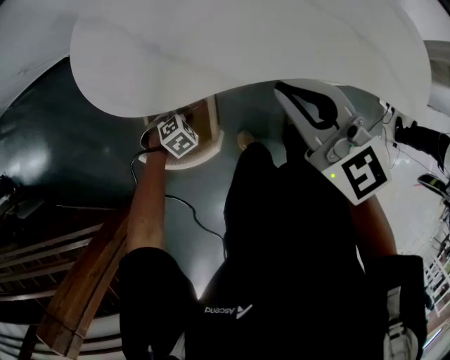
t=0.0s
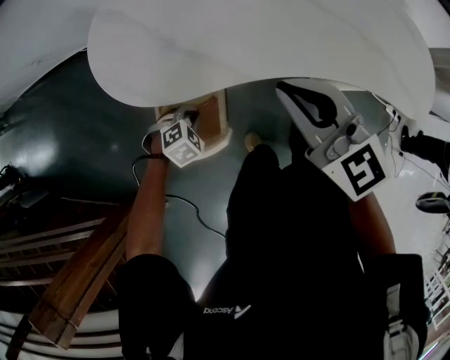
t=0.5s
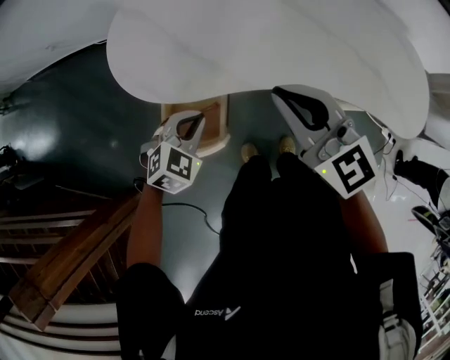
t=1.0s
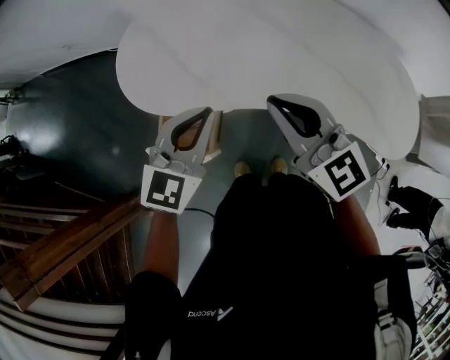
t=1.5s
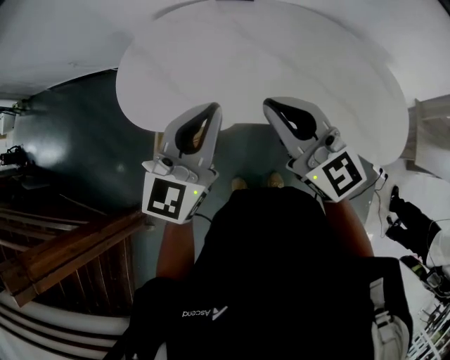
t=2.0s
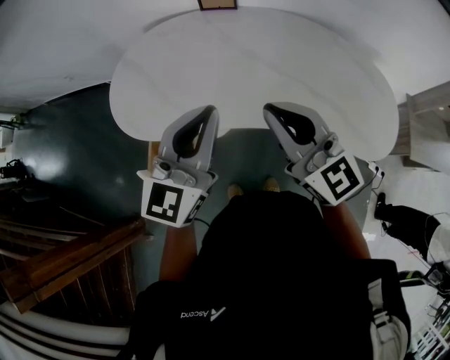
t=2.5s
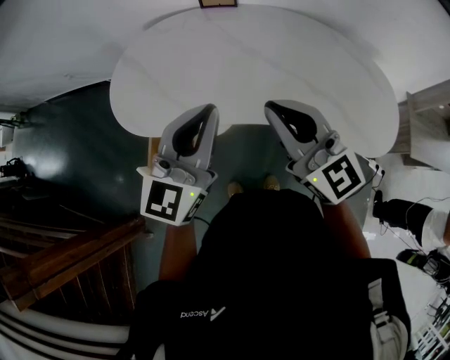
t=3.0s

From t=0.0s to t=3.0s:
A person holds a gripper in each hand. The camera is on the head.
From t=0.0s to t=1.5s: The left gripper moves upward, approximately 40 cm, and tilts its fingers approximately 60 degrees upward. Meanwhile the right gripper heads upward, covering approximately 5 cm.
From t=1.5s to t=3.0s: The right gripper shifts about 10 cm to the right. Meanwhile the left gripper goes approximately 15 cm to the right and upward.

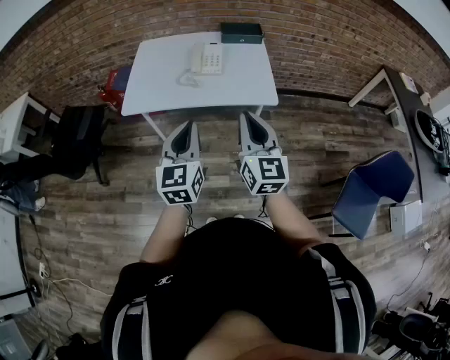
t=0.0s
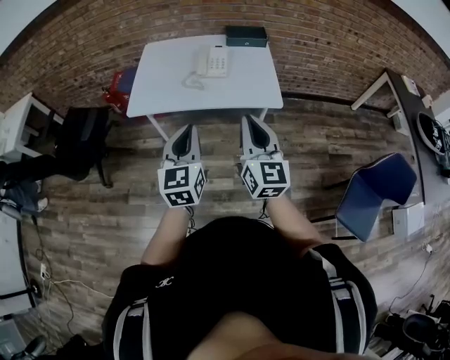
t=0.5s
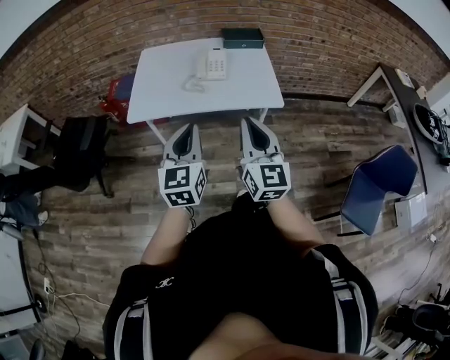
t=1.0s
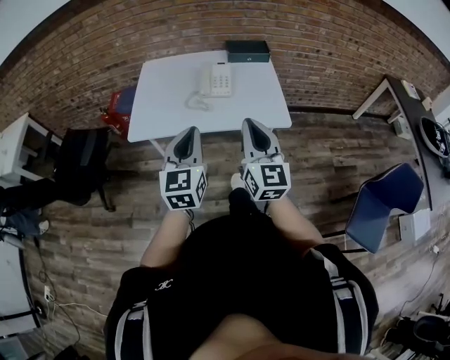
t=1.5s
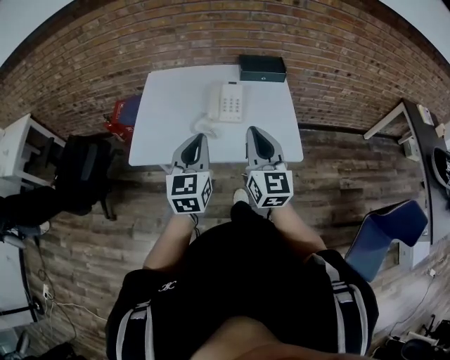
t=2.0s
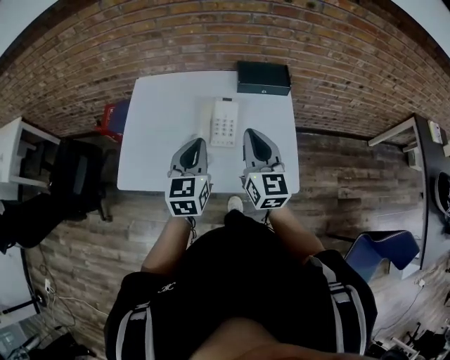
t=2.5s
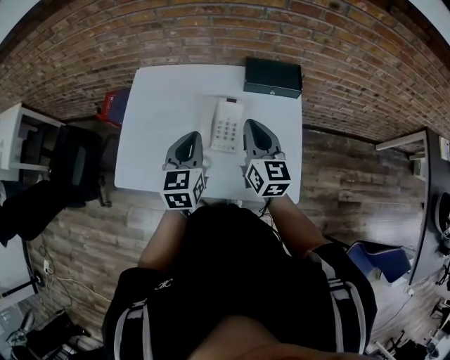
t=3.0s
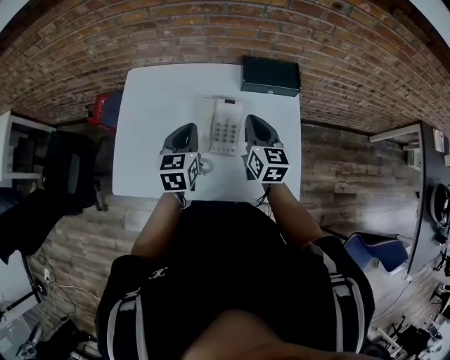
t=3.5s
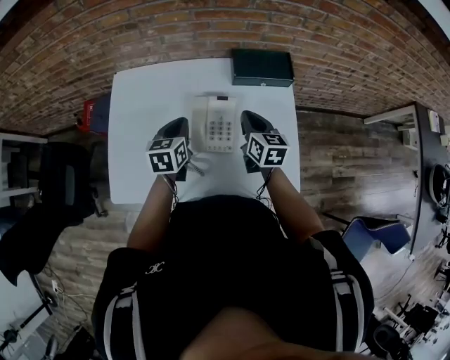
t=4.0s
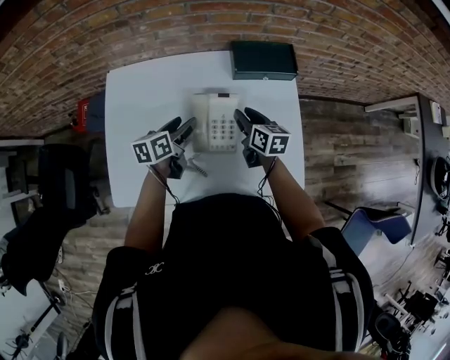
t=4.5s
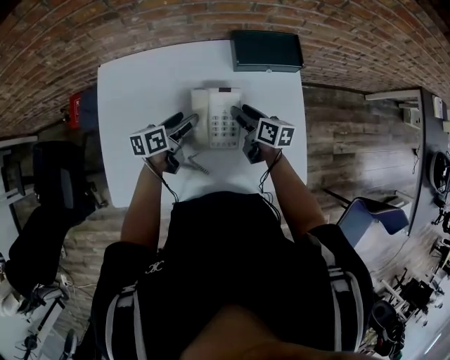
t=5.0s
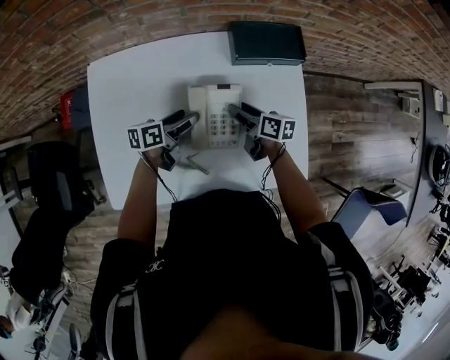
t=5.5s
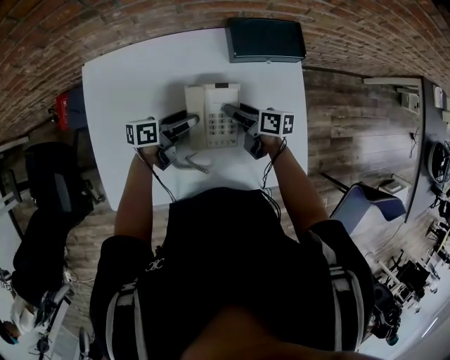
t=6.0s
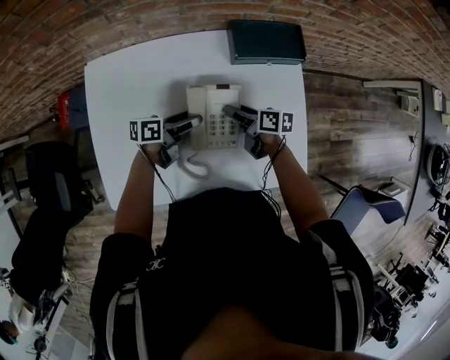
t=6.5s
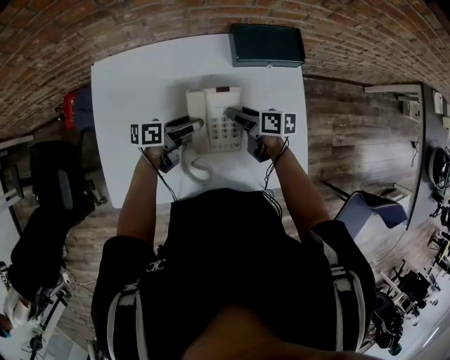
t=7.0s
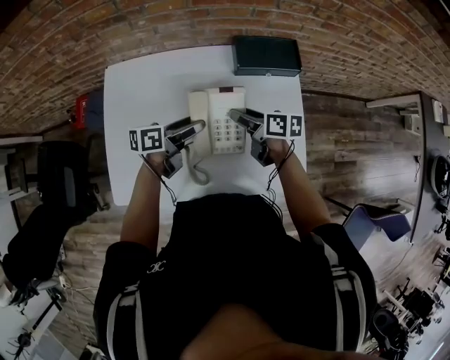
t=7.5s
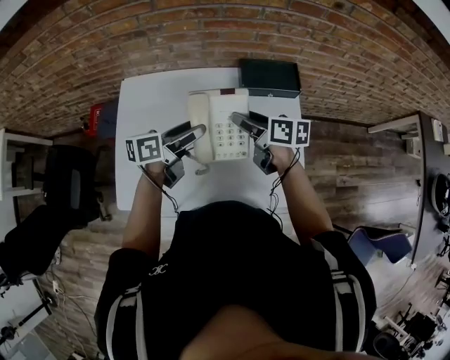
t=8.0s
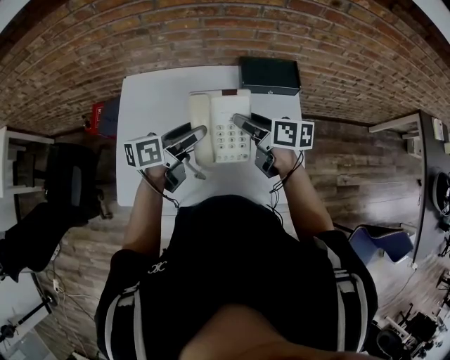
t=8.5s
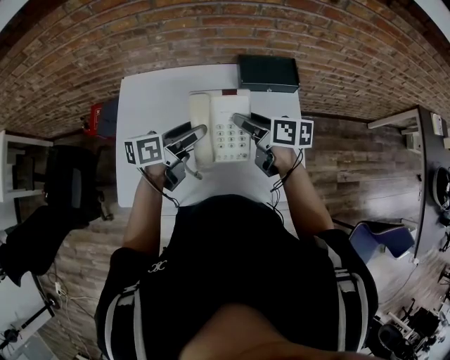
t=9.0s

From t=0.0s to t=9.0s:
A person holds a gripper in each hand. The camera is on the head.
From t=0.0s to t=2.0s: The grippers both shift forward by some 25 cm.
From t=2.0s to t=4.5s: Both grippers move forward and downward, roughly 40 cm. The left gripper turns by some 50 degrees, and opens its fingers; the right gripper tilts its fingers about 30 degrees downward, and opens up.
From t=4.5s to t=7.0s: The left gripper travels downward by approximately 5 cm, and swivels about 30 degrees, while the right gripper changes place by some 5 cm, swivels some 30 degrees, and opens its fingers.
From t=7.0s to t=9.0s: Both grippers move upward, about 15 cm. The left gripper rotates roughly 20 degrees.

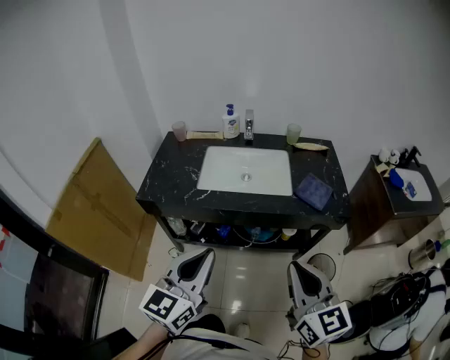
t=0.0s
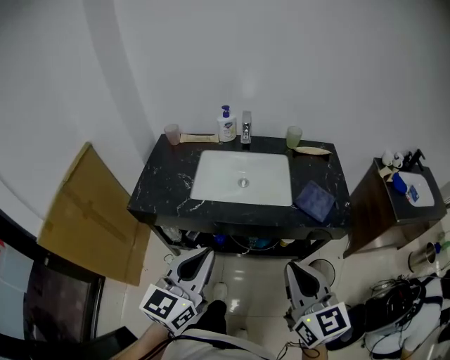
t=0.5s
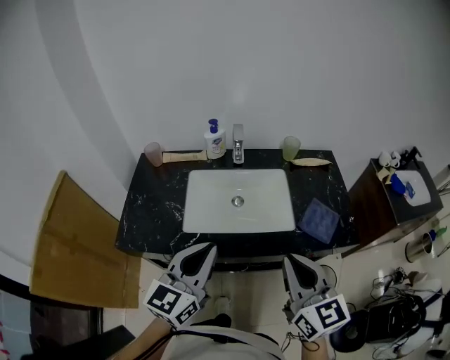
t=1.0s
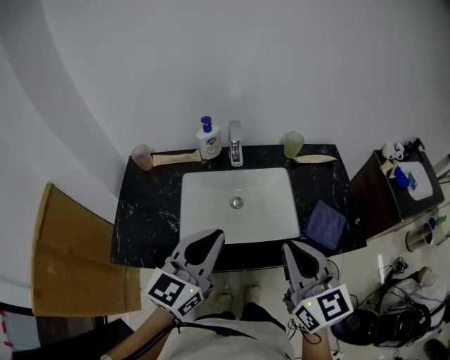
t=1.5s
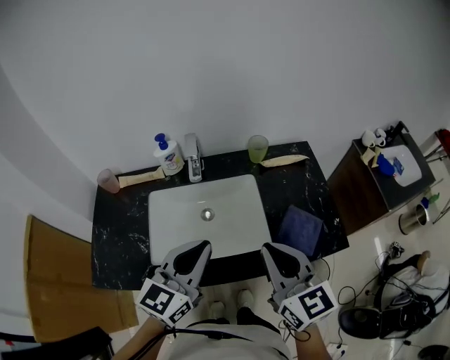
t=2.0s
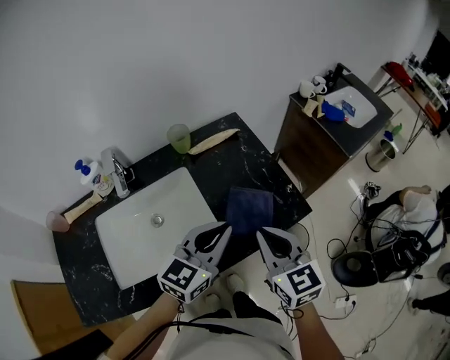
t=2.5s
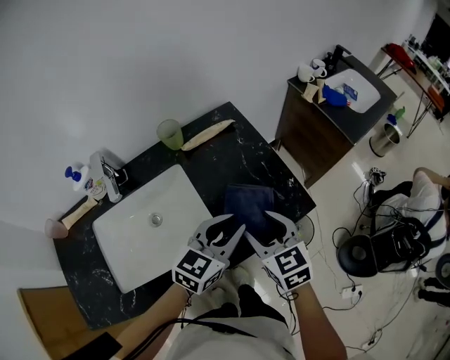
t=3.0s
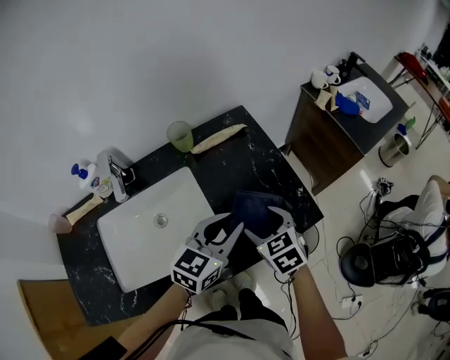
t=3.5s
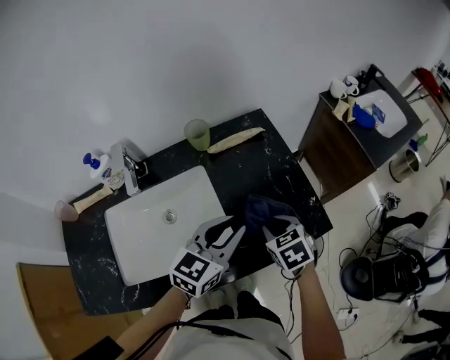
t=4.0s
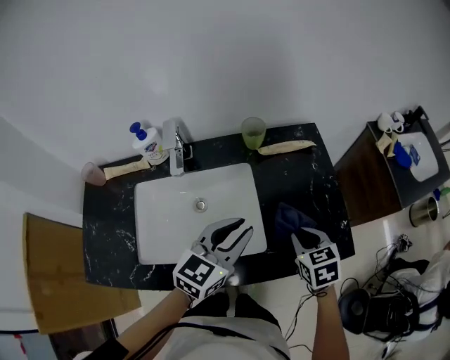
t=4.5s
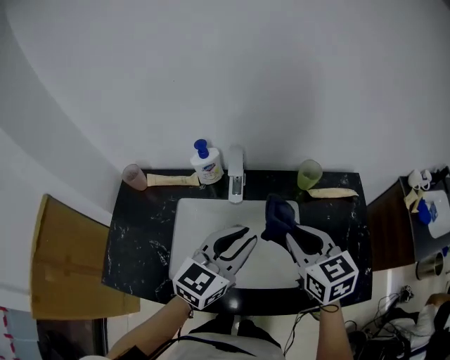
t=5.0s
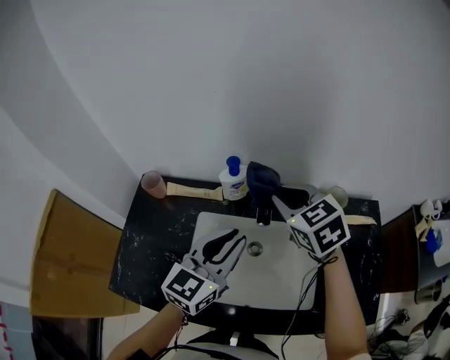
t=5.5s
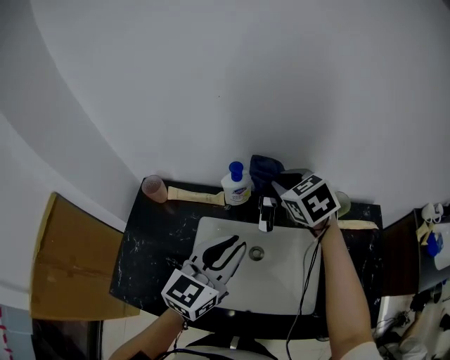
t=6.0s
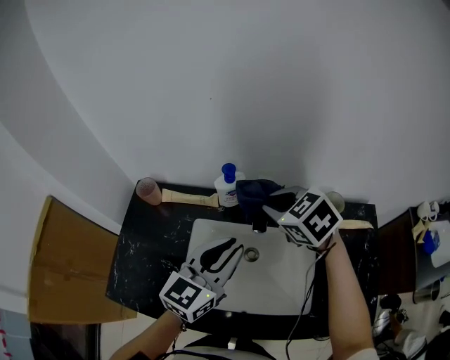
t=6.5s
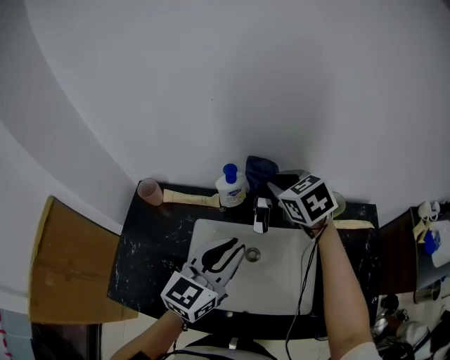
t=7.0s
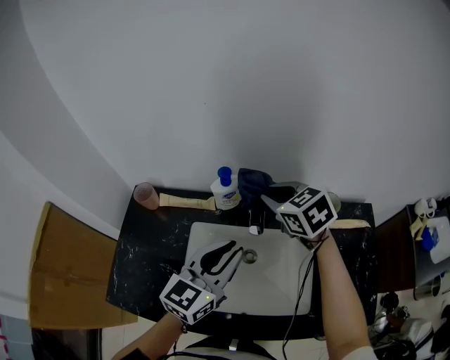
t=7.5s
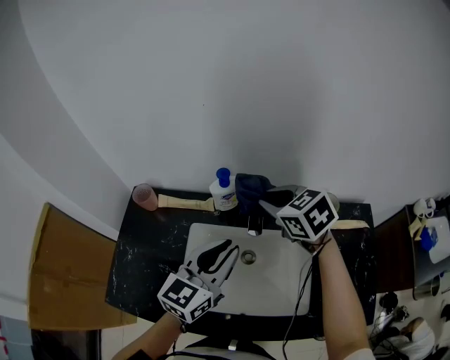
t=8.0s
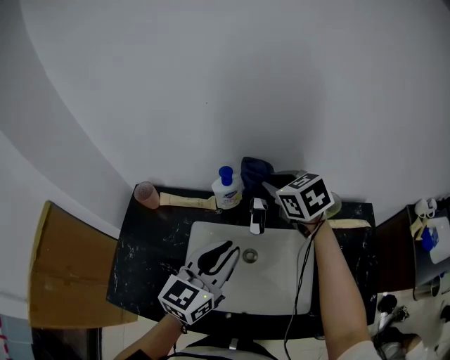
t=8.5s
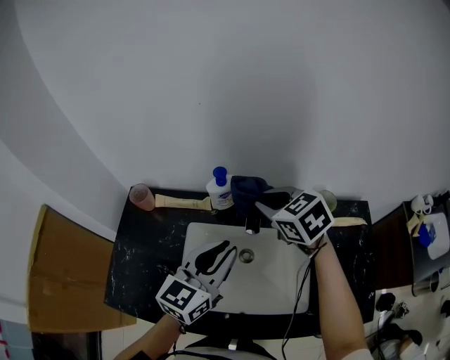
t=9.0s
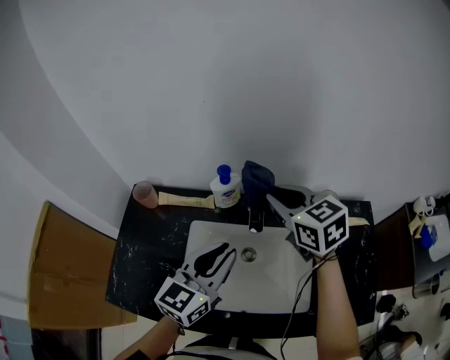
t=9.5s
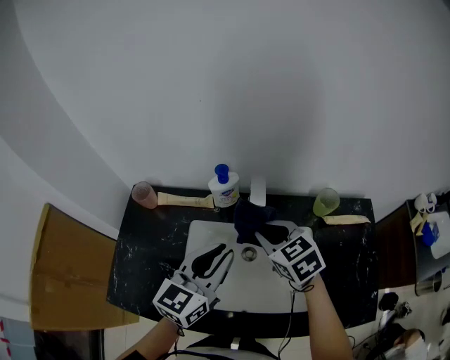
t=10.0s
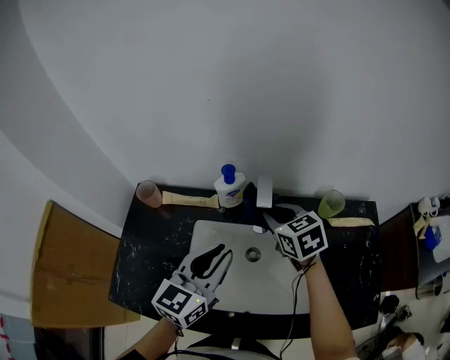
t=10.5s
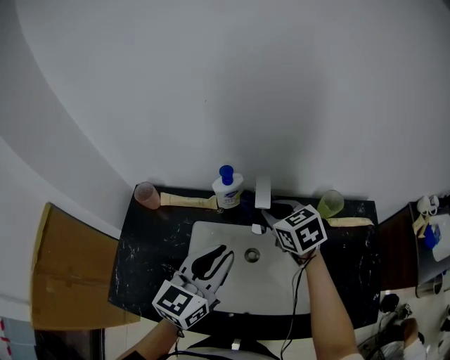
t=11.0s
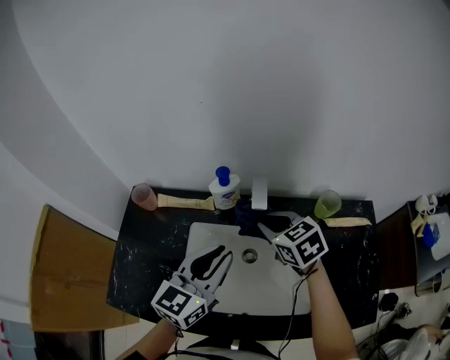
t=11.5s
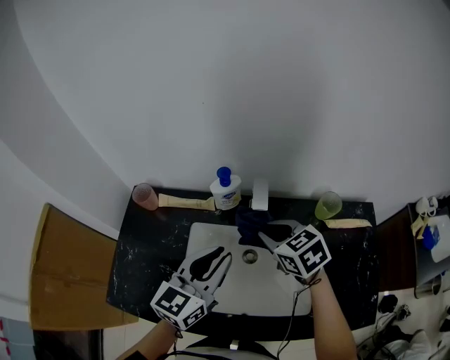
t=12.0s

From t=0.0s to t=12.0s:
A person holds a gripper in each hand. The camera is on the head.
From t=0.0s to t=2.0s: Both grippers move forward, approximately 35 cm.
From t=2.0s to t=4.0s: The left gripper moves about 25 cm, swivels about 30 degrees, and opens its fingers, while the right gripper moves downward, some 25 cm, angles its fingers downward, by roughly 50 degrees, and opens up.
From t=4.0s to t=6.0s: The right gripper changes place by some 50 cm, and swivels approximately 40 degrees; the left gripper ends up some 35 cm from where it was, and changes its angle by approximately 40 degrees.
From t=6.0s to t=8.0s: The right gripper goes forward and backward, approximately 5 cm each way, reversing 2 times.
From t=8.0s to t=10.0s: The right gripper shifts approximately 10 cm backward and downward.

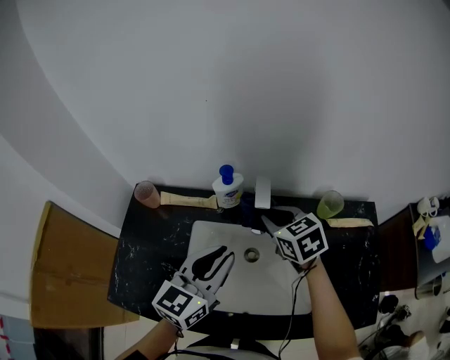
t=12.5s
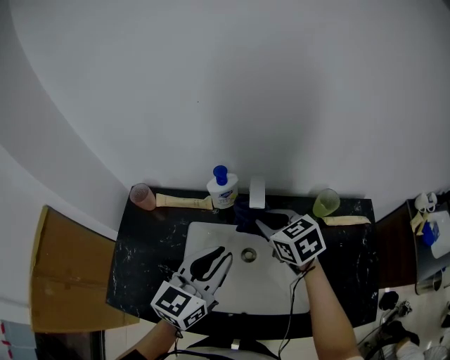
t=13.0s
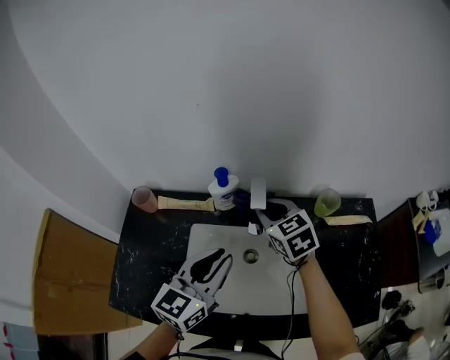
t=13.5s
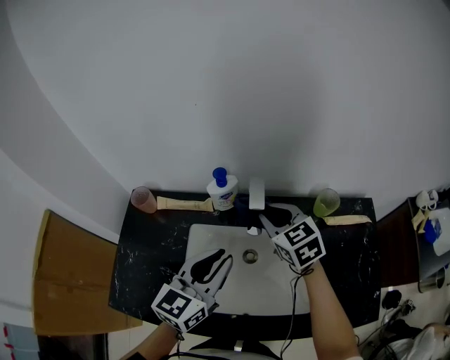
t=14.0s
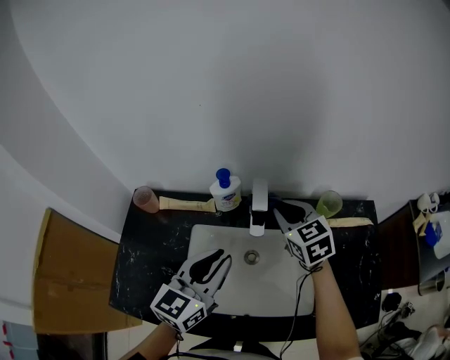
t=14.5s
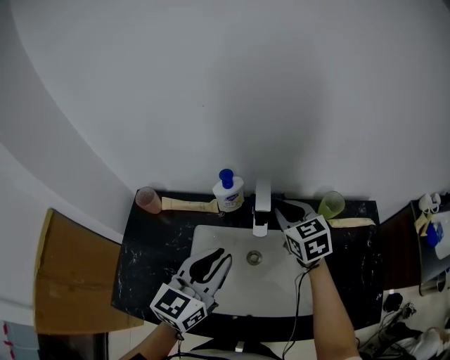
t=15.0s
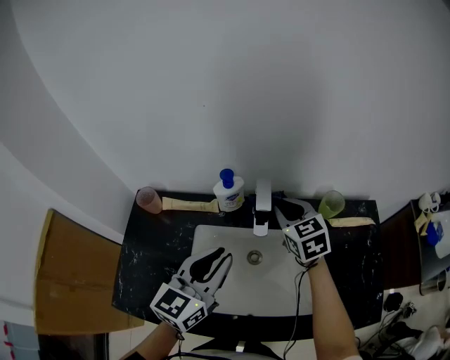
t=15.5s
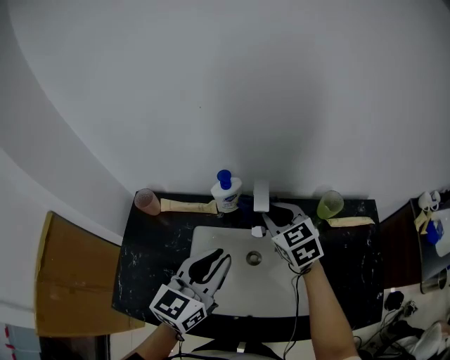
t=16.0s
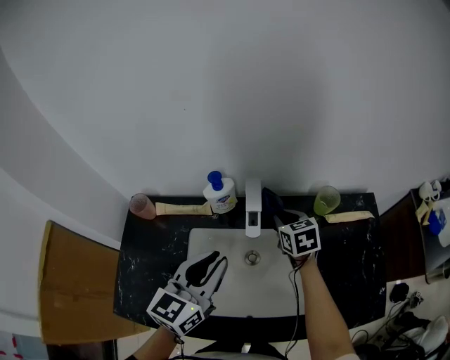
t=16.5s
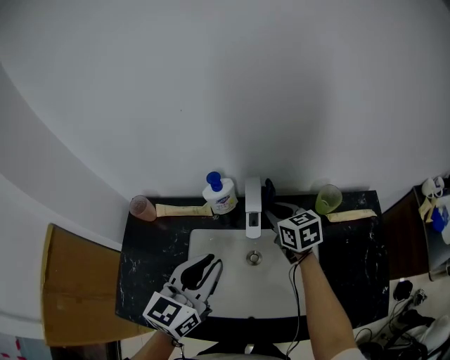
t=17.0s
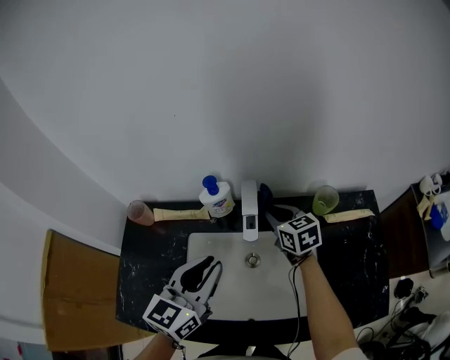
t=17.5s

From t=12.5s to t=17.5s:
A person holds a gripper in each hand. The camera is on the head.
From t=12.5s to t=15.0s: The grippers make only small movements.
From t=15.0s to t=17.5s: The right gripper travels downward by some 5 cm.
